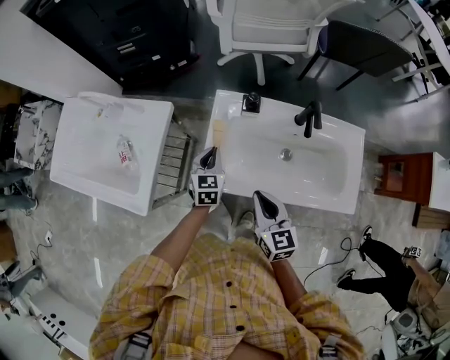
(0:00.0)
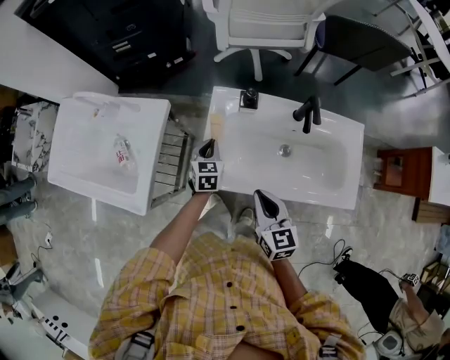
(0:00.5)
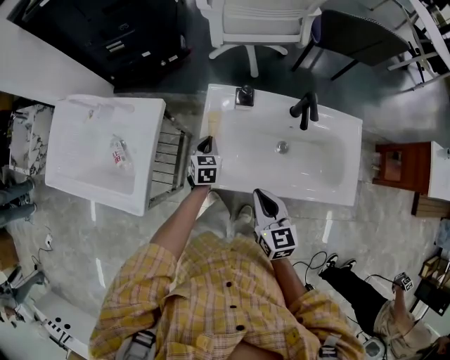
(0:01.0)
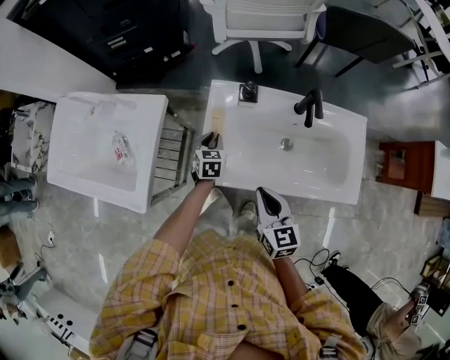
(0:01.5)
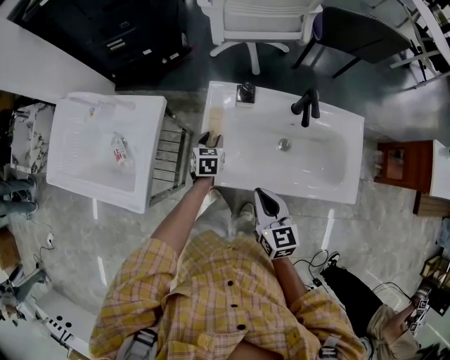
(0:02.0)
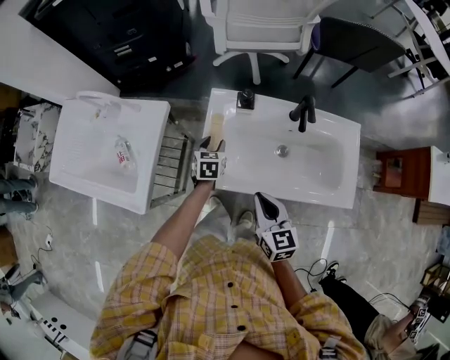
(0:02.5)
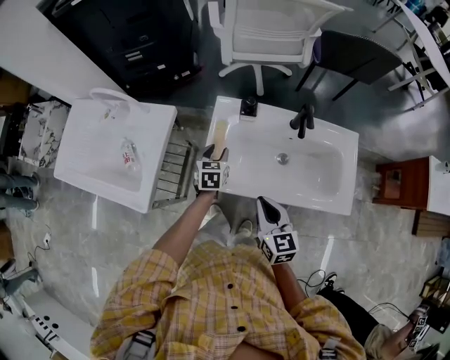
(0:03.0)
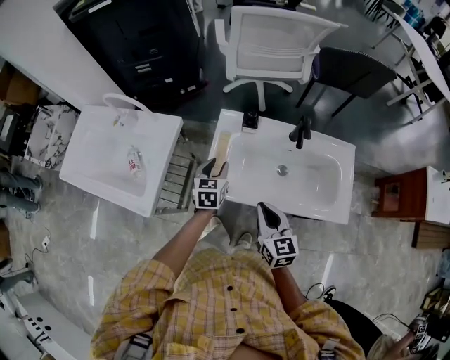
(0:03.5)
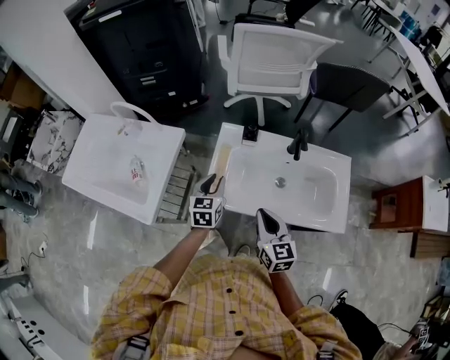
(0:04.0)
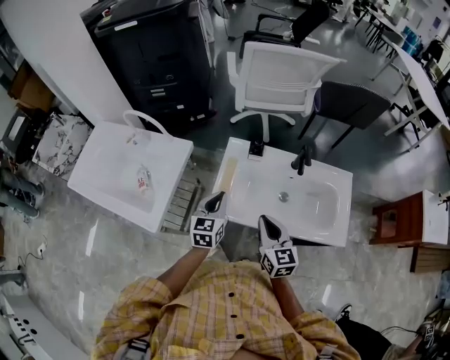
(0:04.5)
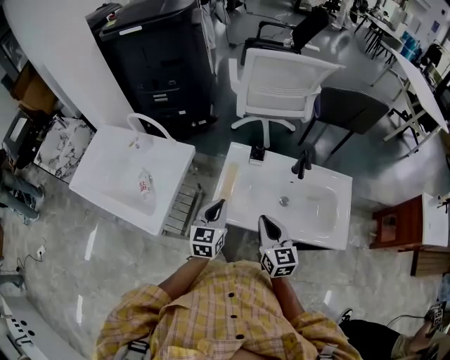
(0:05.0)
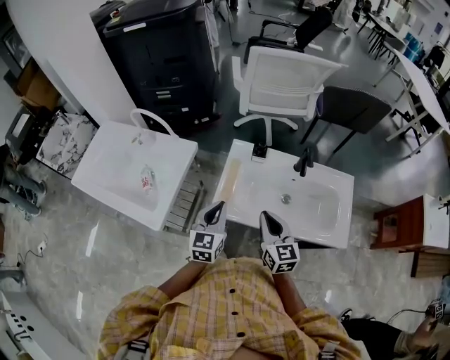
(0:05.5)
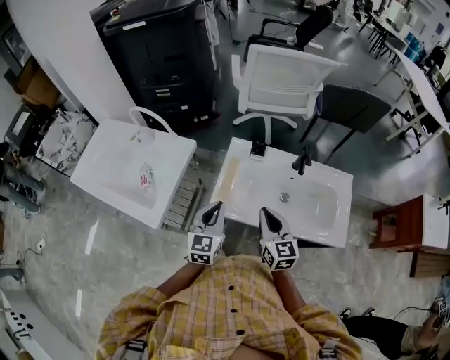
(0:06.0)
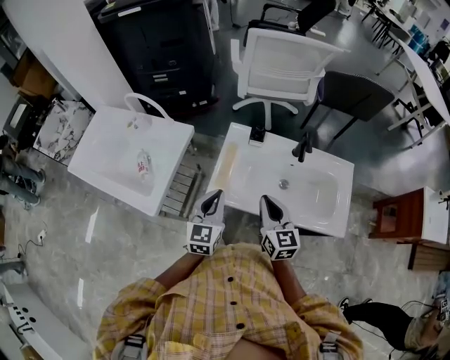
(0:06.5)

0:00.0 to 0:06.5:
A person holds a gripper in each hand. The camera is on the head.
0:00.0 to 0:02.0: The left gripper shifts roughly 10 cm downward, and opens its fingers.
0:02.0 to 0:04.5: The left gripper goes approximately 25 cm upward and backward, turns by some 20 degrees, and closes, while the right gripper shifts roughly 5 cm upward.
0:04.5 to 0:06.5: The left gripper is displaced backward by approximately 5 cm.

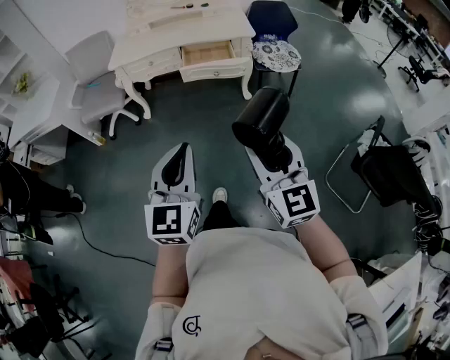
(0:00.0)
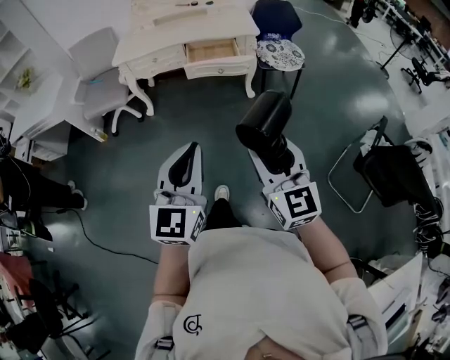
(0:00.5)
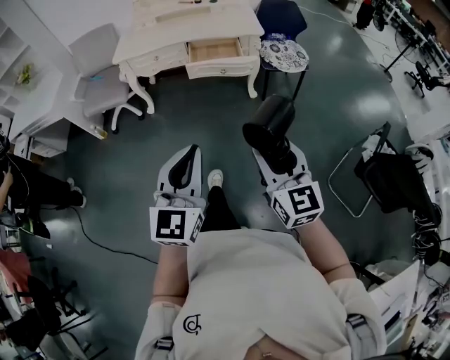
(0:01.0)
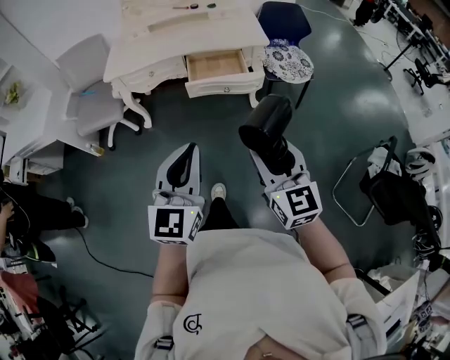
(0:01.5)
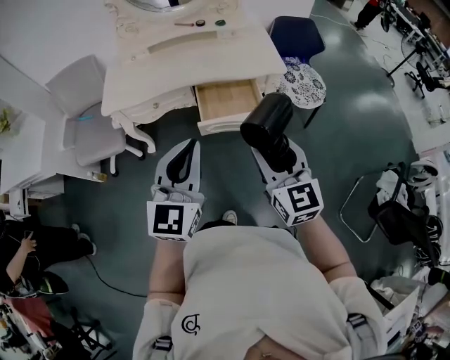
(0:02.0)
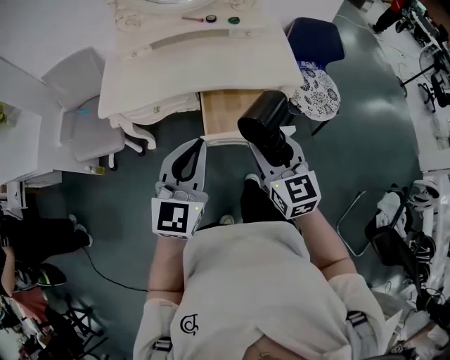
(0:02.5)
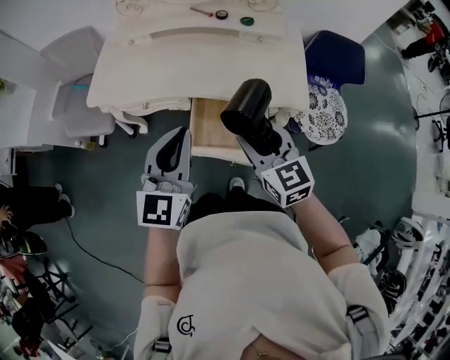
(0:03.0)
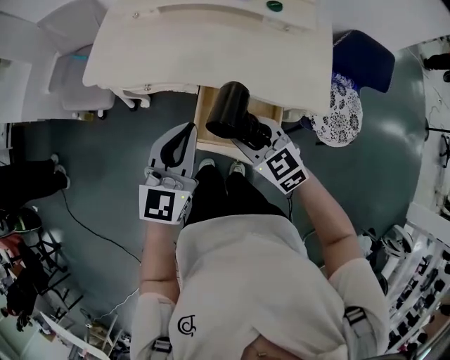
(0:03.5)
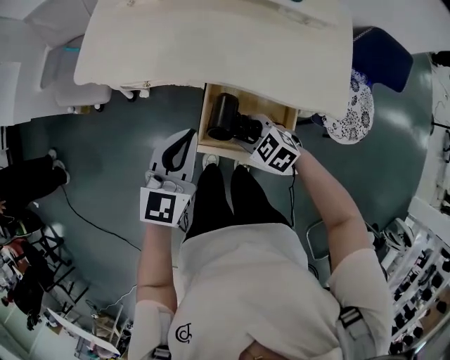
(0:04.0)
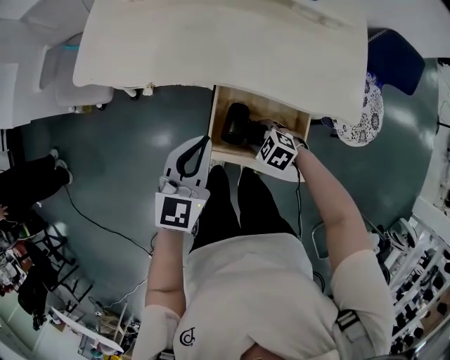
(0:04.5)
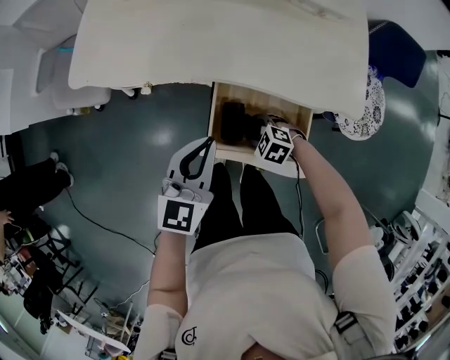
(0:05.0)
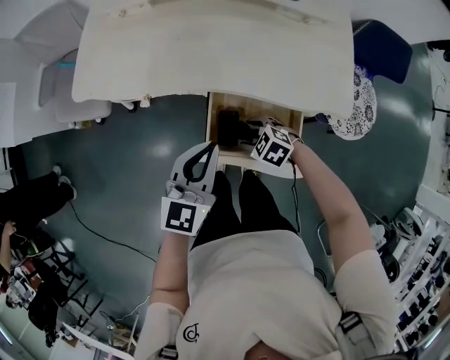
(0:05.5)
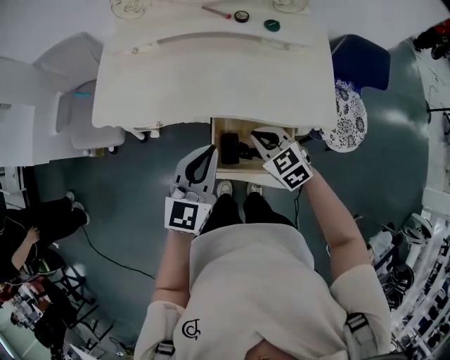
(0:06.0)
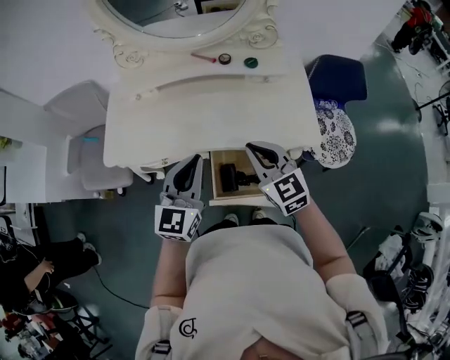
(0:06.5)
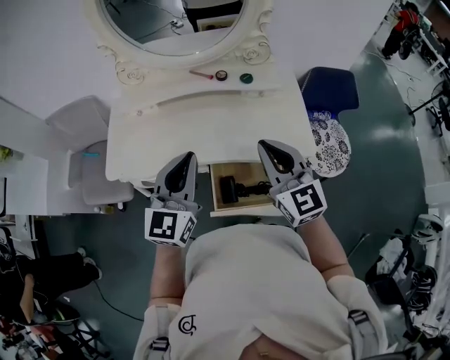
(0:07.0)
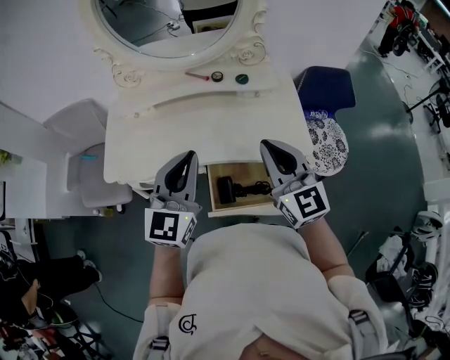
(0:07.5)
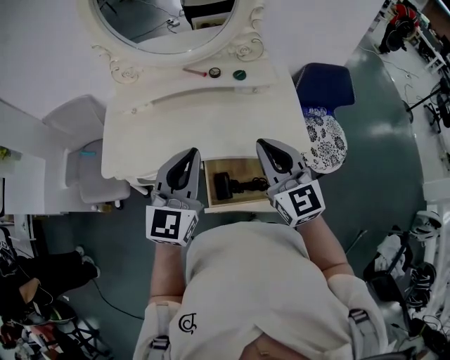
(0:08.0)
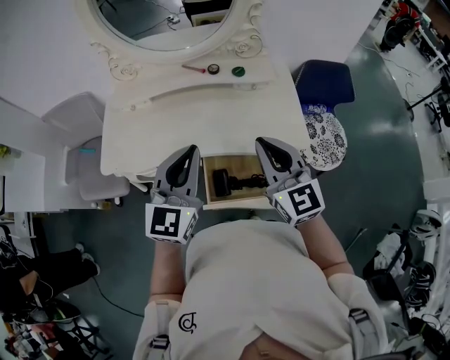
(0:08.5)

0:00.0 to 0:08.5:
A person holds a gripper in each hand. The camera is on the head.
0:00.0 to 0:02.0: The two grippers travel together, forward, roughly 40 cm.
0:02.0 to 0:04.0: The right gripper is displaced downward by about 35 cm, and angles its fingers downward, by approximately 40 degrees, while the left gripper ends up about 35 cm from where it was, and swivels about 20 degrees.
0:04.0 to 0:06.5: The left gripper heads upward, covering about 10 cm; the right gripper goes approximately 25 cm upward, tilts its fingers some 30 degrees upward, and closes up.
0:06.5 to 0:08.5: The left gripper goes roughly 10 cm upward; the right gripper heads upward and to the right, covering roughly 15 cm.

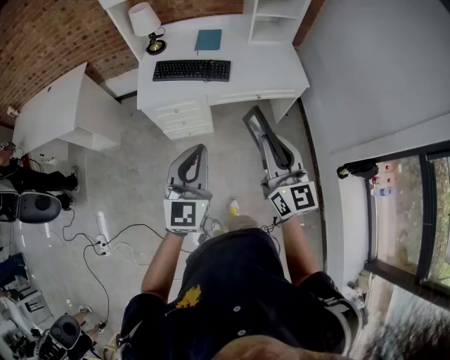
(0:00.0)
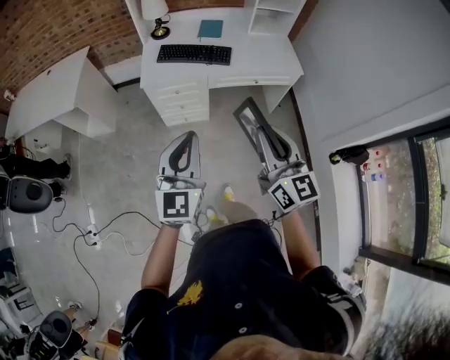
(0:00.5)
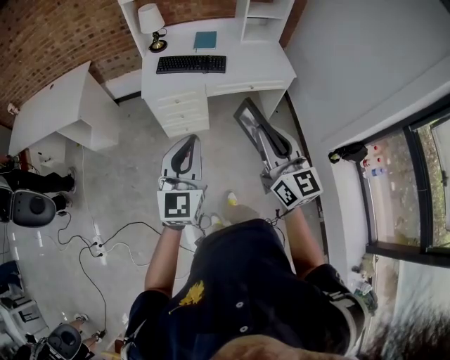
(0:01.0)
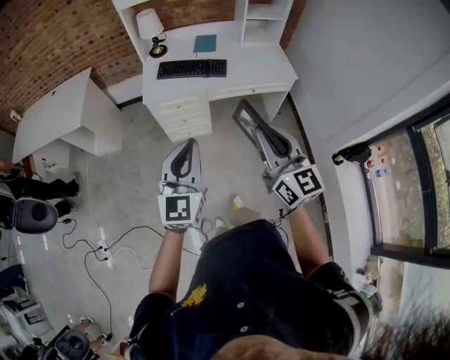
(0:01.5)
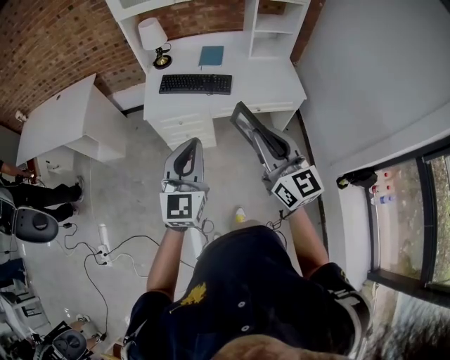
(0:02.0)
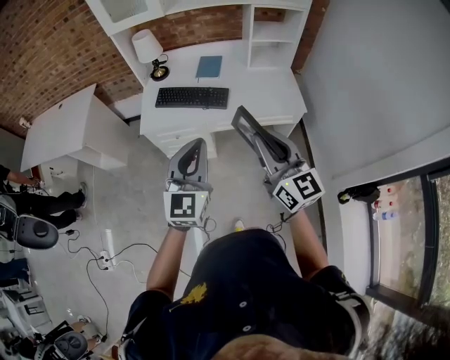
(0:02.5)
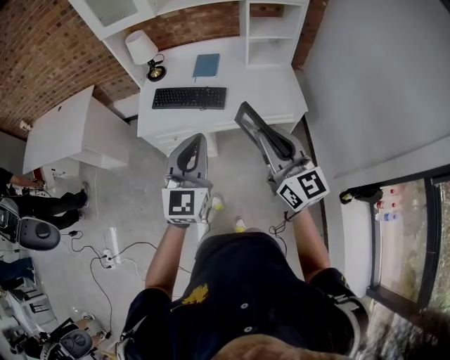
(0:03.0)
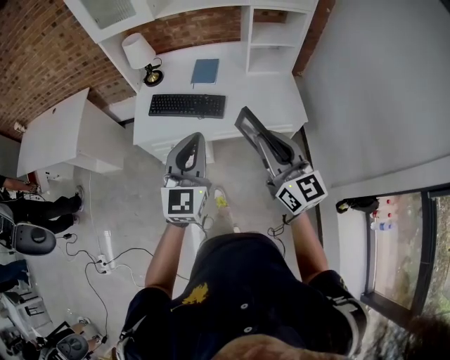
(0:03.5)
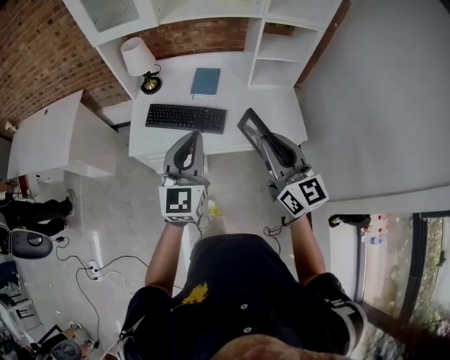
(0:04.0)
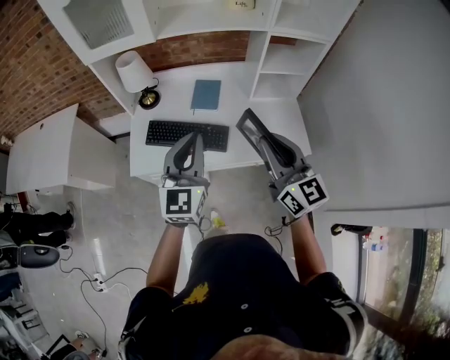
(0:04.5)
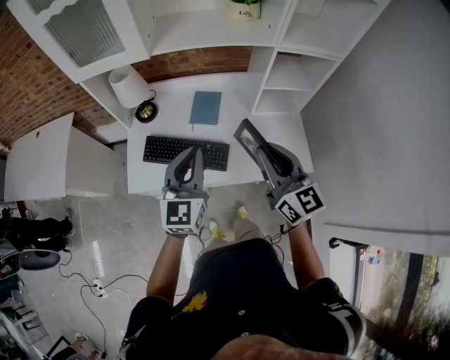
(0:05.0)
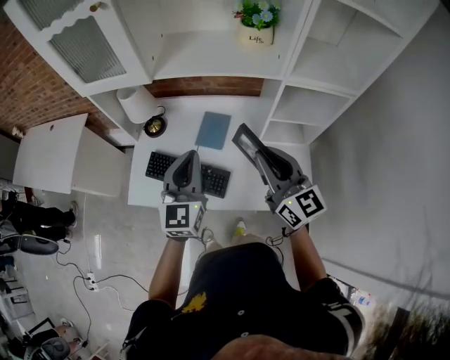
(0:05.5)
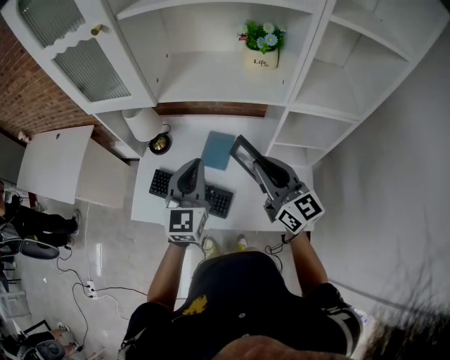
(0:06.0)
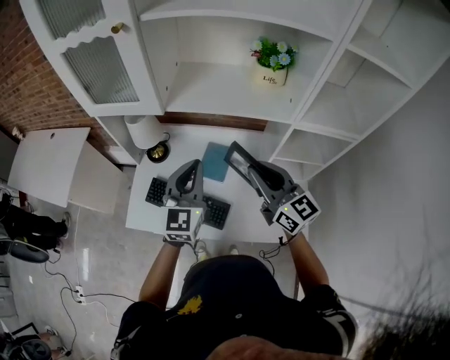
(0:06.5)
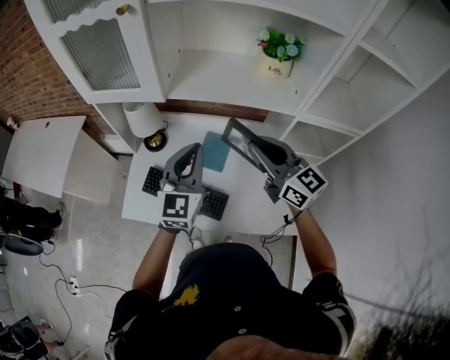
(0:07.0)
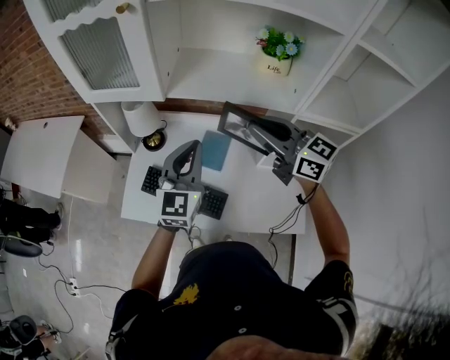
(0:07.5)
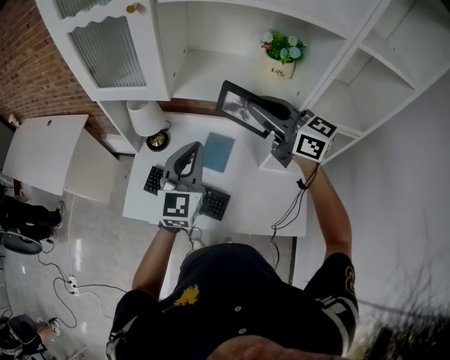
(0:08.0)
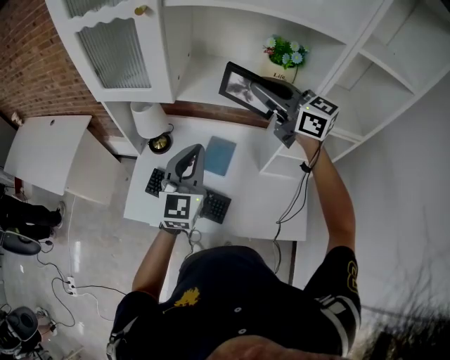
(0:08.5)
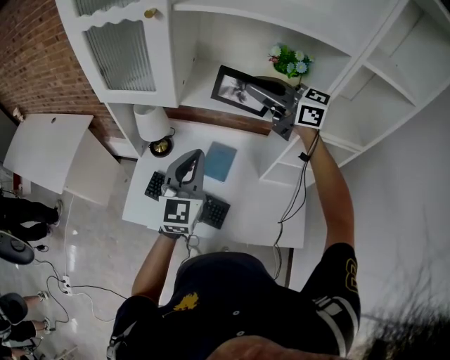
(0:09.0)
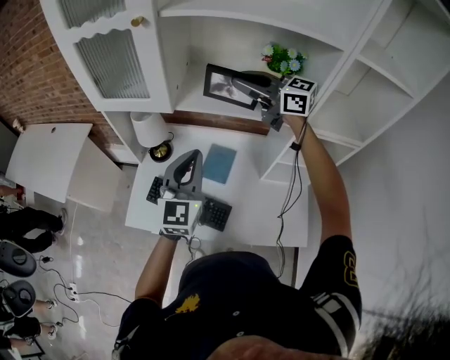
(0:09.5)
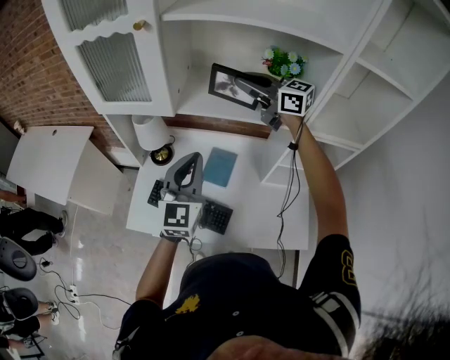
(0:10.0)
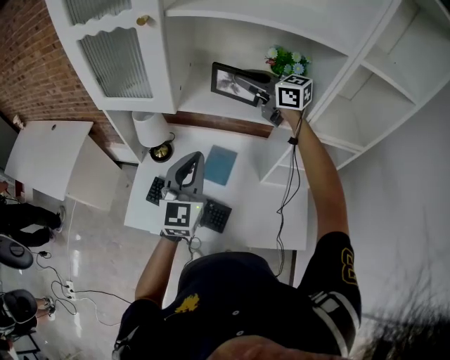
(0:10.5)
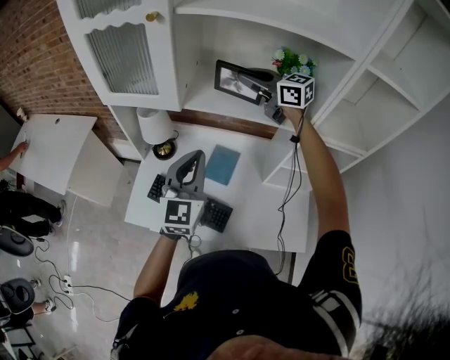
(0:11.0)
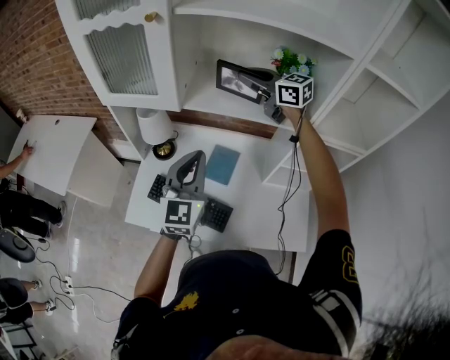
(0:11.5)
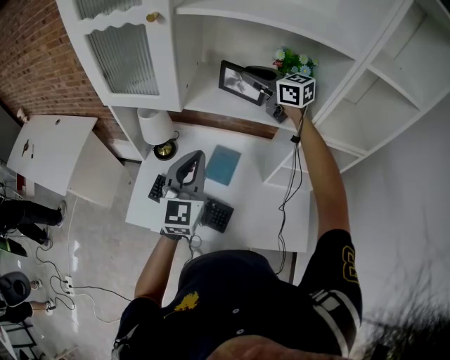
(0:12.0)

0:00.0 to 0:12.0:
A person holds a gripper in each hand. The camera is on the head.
0:00.0 to 0:02.0: The right gripper heads upward, covering approximately 5 cm, and moves roughly 15 cm backward and comes back, while the left gripper reaches approximately 15 cm backward, then returns.
0:02.0 to 0:04.0: The two grippers go approximately 25 cm forward.
0:04.0 to 0:06.0: Both grippers move forward, some 35 cm.
0:06.0 to 0:08.0: The left gripper changes place by some 5 cm. The right gripper shifts roughly 15 cm forward and upward, and swivels roughly 20 degrees.
0:08.0 to 0:10.0: The right gripper travels forward by roughly 15 cm.
0:10.0 to 0:12.0: The right gripper ends up about 5 cm from where it was.
